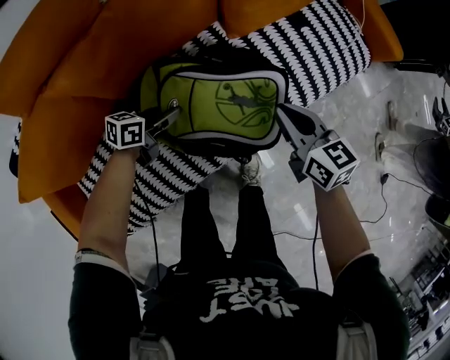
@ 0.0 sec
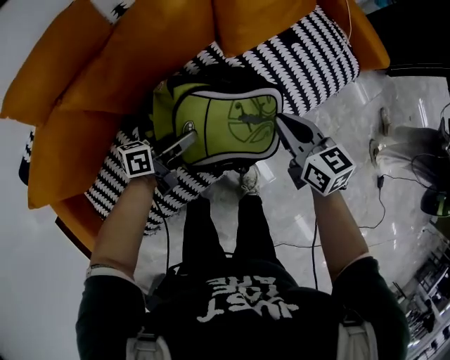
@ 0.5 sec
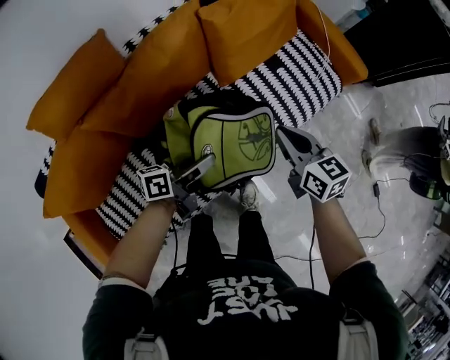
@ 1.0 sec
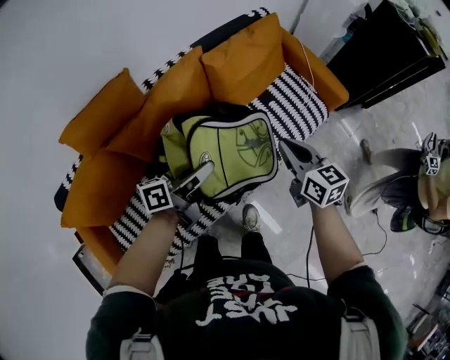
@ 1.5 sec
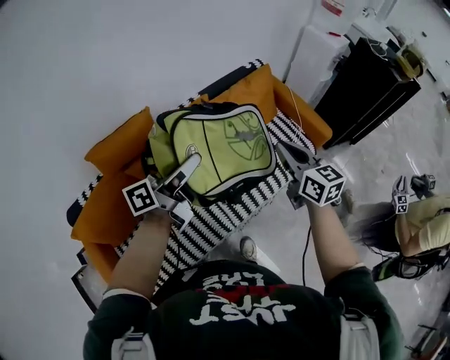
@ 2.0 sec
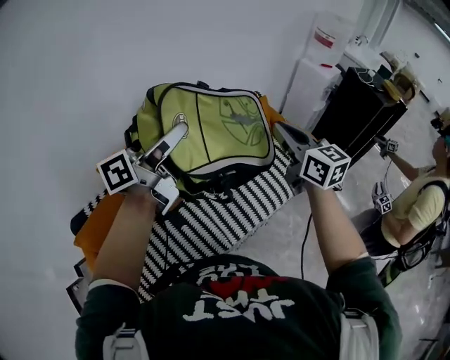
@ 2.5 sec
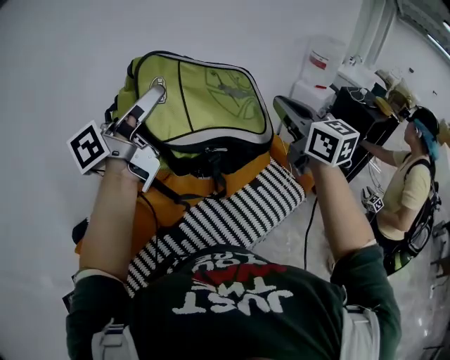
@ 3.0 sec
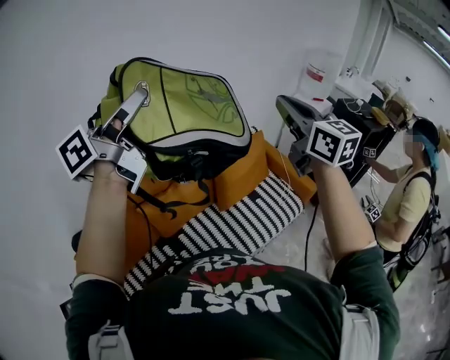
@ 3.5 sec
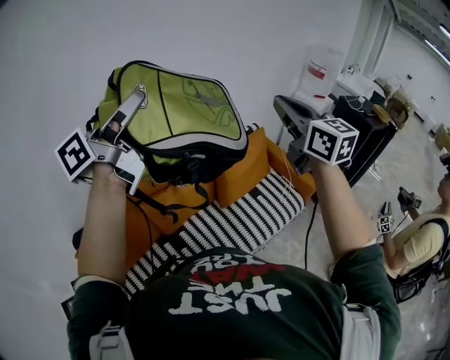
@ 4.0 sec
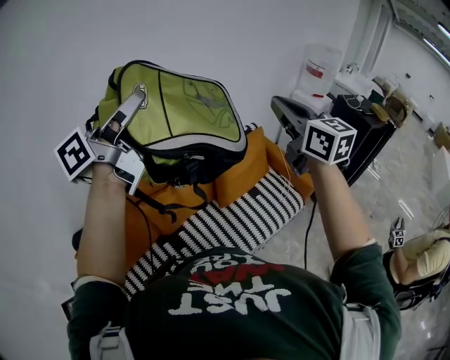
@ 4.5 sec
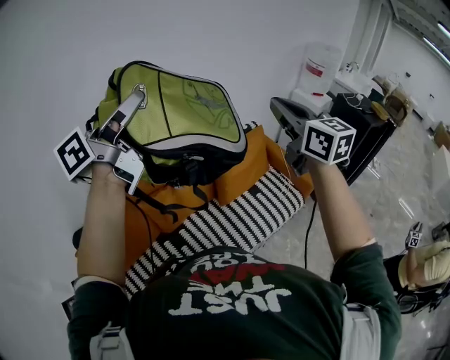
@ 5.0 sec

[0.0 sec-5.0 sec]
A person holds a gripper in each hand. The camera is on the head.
0.0 sec to 2.5 sec: The right gripper goes up and down, some 35 cm each way, reversing 2 times, and turns by approximately 20 degrees. The left gripper goes approximately 50 cm upward, and angles its fingers upward, by roughly 40 degrees.
2.5 sec to 5.0 sec: Both grippers travel together upward, about 15 cm.

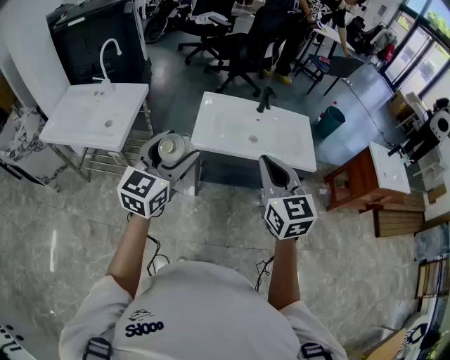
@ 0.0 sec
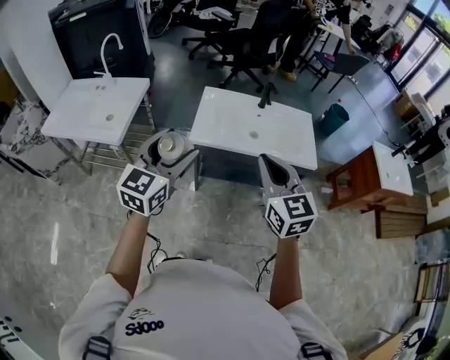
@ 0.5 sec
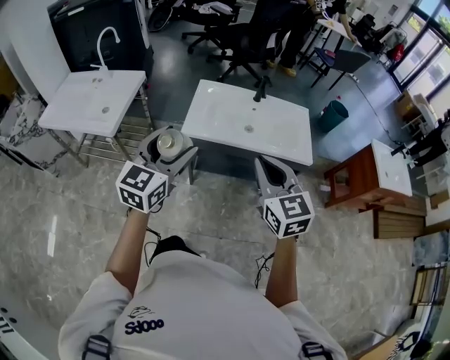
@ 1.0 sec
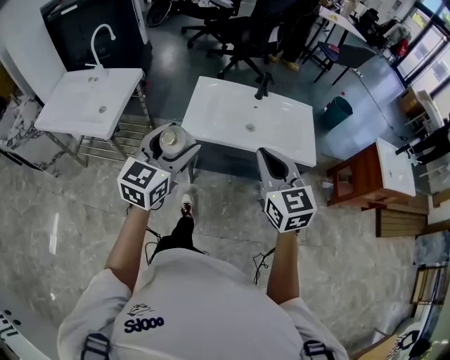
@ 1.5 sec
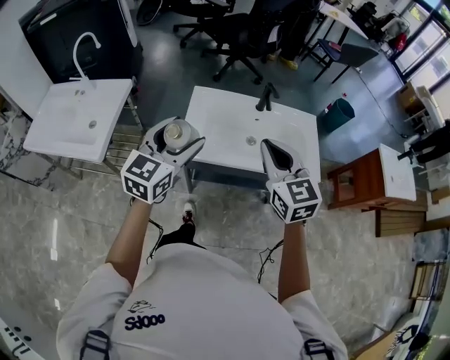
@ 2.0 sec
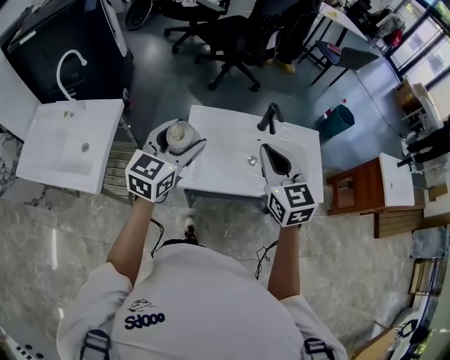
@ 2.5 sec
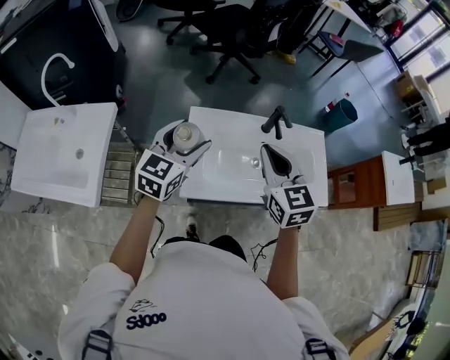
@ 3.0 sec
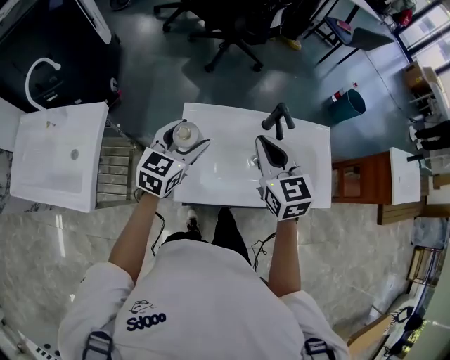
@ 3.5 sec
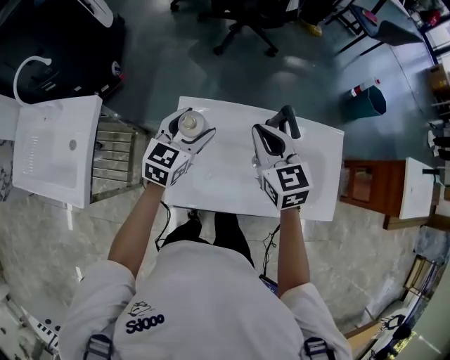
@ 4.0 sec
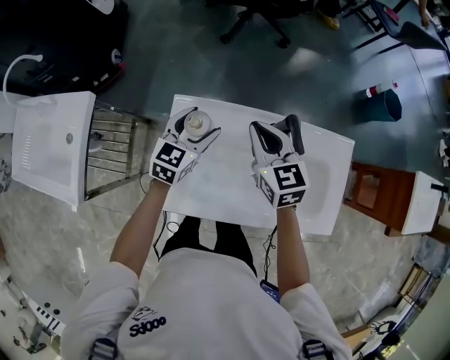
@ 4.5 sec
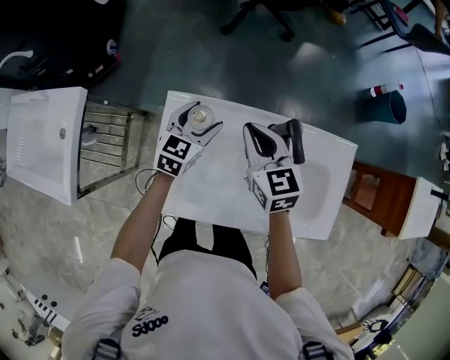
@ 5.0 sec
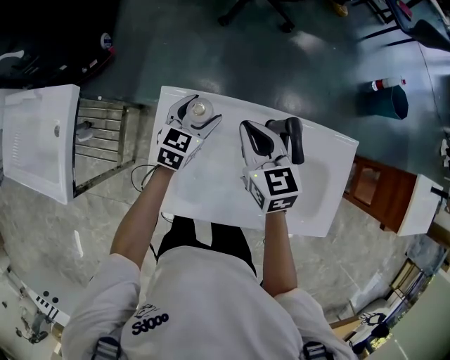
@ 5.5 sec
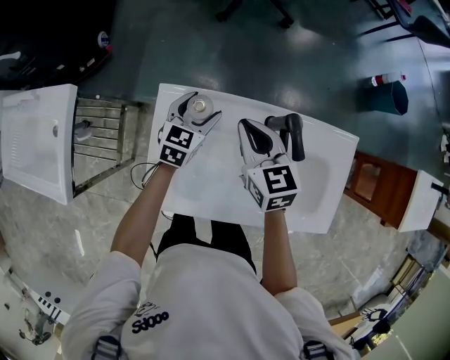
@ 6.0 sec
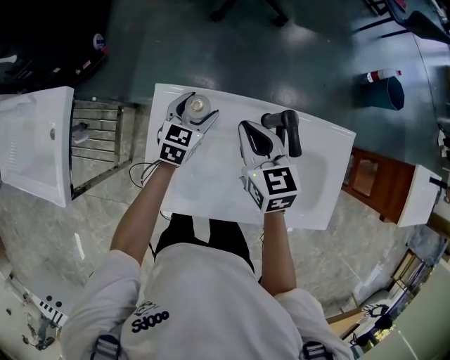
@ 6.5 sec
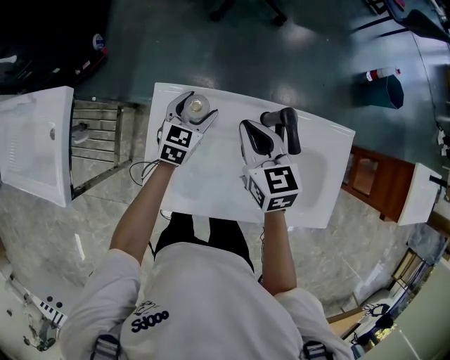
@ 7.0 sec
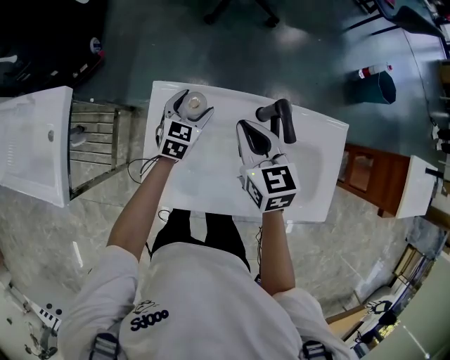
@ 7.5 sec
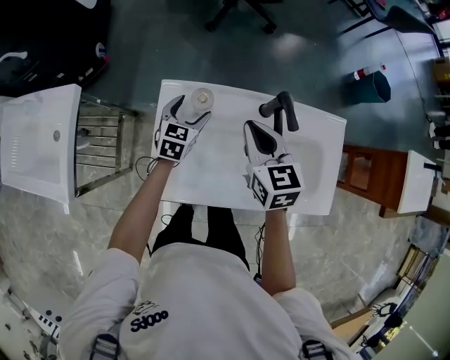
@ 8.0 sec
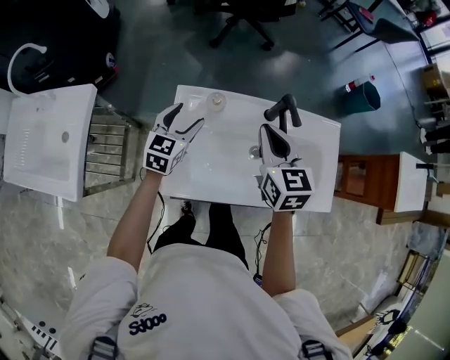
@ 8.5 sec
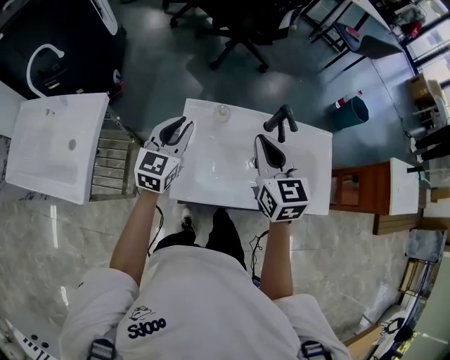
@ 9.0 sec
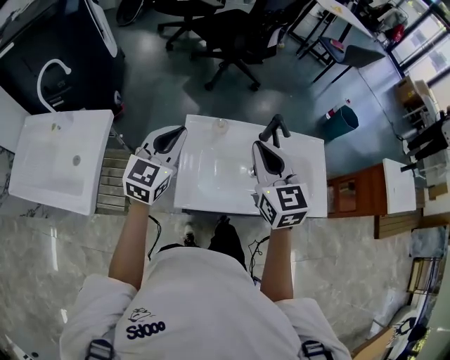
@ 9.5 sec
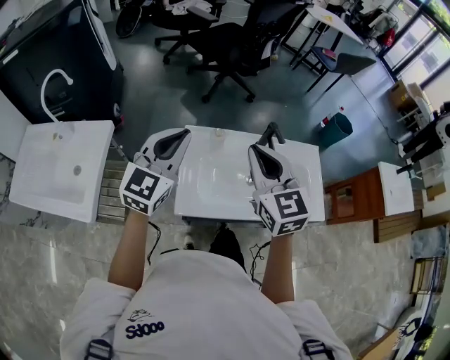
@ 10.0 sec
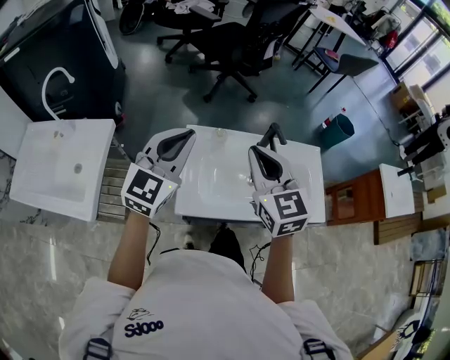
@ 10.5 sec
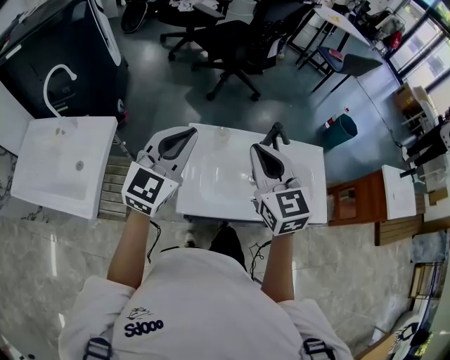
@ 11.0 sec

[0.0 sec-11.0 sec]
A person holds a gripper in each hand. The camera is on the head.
0.0 sec to 2.0 sec: Both grippers travel together forward, roughly 15 cm.
2.0 sec to 3.5 sec: The left gripper is displaced forward and downward by about 25 cm. The right gripper heads forward, covering roughly 20 cm.
3.5 sec to 5.5 sec: The left gripper shifts roughly 25 cm downward, forward and to the right; the right gripper moves downward and forward, about 20 cm.
5.5 sec to 7.5 sec: The grippers stay close to where they were, moving slightly.
7.5 sec to 9.0 sec: The left gripper goes roughly 25 cm upward, to the left and backward, rotates about 20 degrees, and closes up. The right gripper moves upward and backward, some 15 cm.
9.0 sec to 11.0 sec: The right gripper is displaced upward by roughly 10 cm. The left gripper goes roughly 15 cm upward.

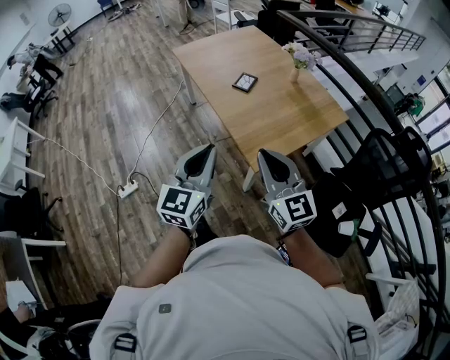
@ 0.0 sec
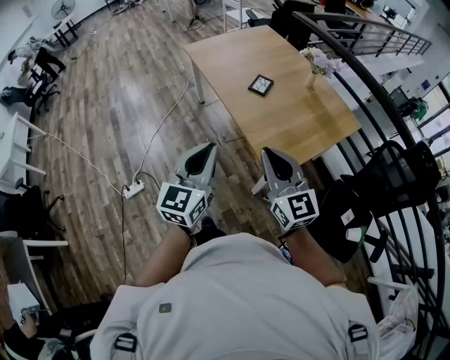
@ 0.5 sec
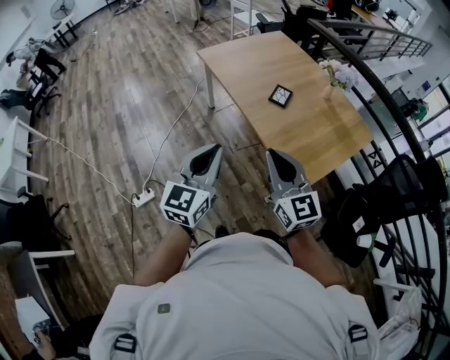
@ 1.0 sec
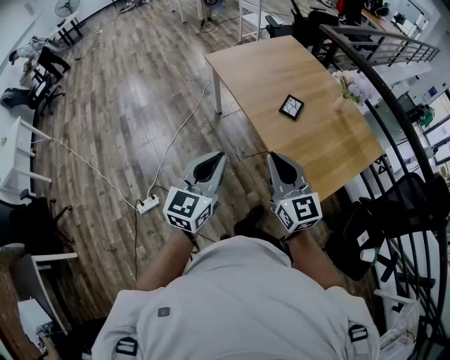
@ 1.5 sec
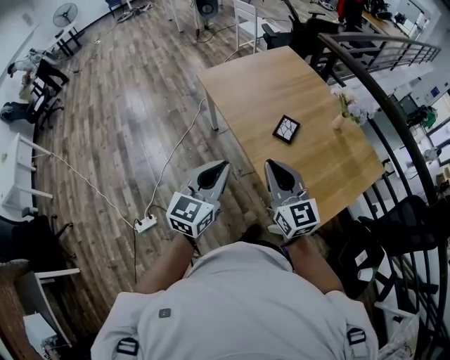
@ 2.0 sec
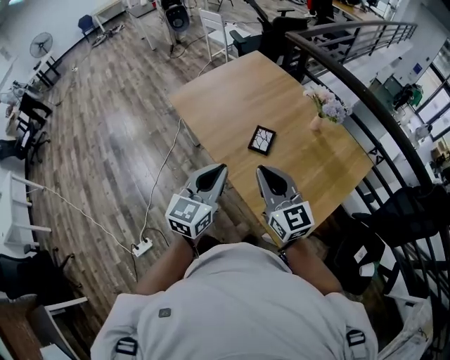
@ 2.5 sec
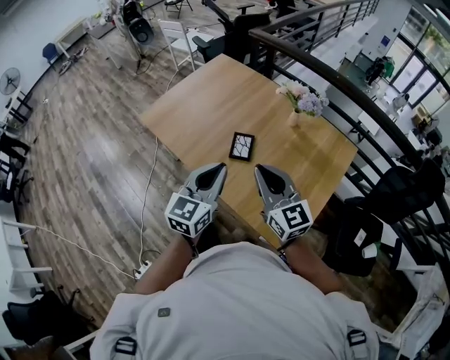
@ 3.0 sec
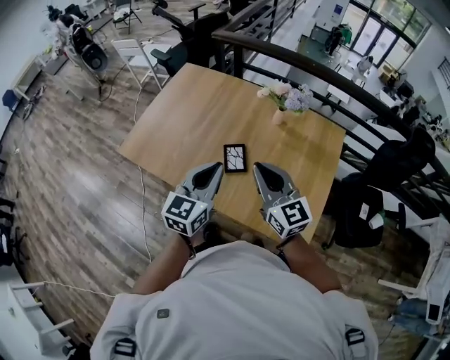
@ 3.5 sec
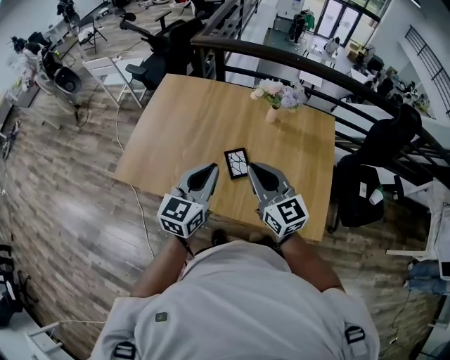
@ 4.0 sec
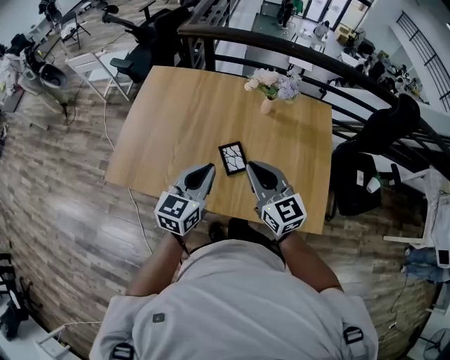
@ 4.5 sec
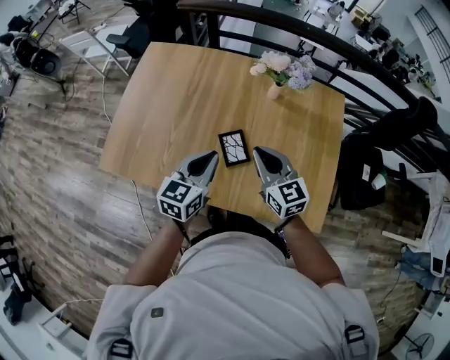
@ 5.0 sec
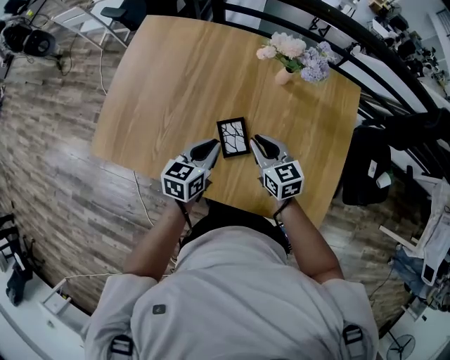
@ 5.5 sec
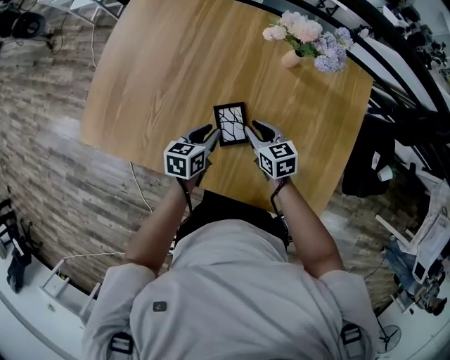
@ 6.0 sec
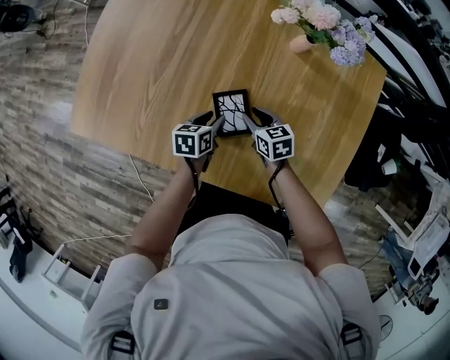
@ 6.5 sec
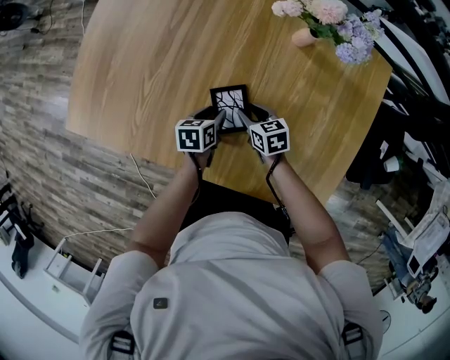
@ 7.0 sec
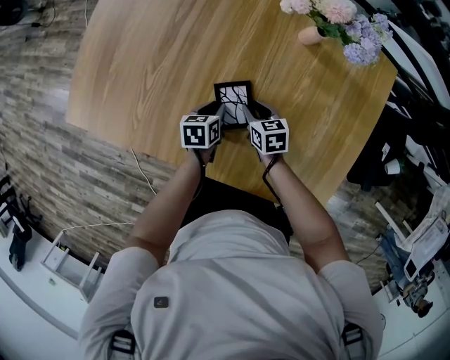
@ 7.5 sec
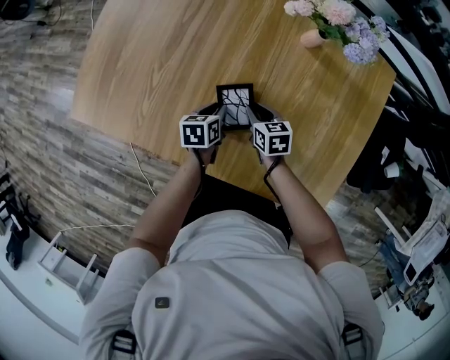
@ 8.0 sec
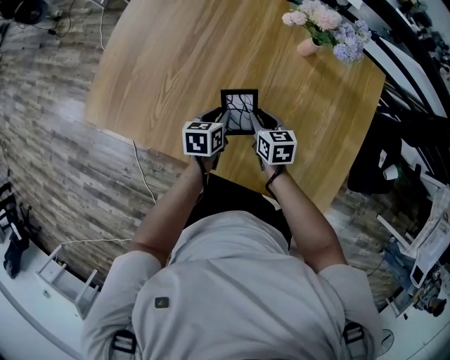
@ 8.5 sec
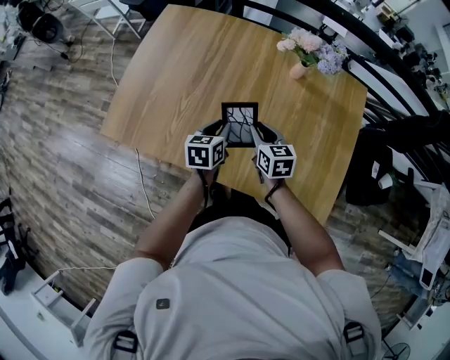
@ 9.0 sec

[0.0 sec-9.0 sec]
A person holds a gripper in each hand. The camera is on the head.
0.0 sec to 2.0 sec: The grippers both shift forward and to the left by some 40 cm.
2.0 sec to 4.5 sec: The left gripper shifts by approximately 35 cm, and turns by approximately 50 degrees; the right gripper shifts by approximately 30 cm, and turns by roughly 40 degrees.
4.5 sec to 7.0 sec: The grippers both shift downward by approximately 40 cm. The right gripper points its fingers about 40 degrees further downward, and opens, while the left gripper tips its fingers downward by some 40 degrees, and opens its fingers.
7.0 sec to 9.0 sec: The two grippers go about 20 cm upward. The left gripper swivels roughly 20 degrees, and closes up; the right gripper rotates roughly 20 degrees.

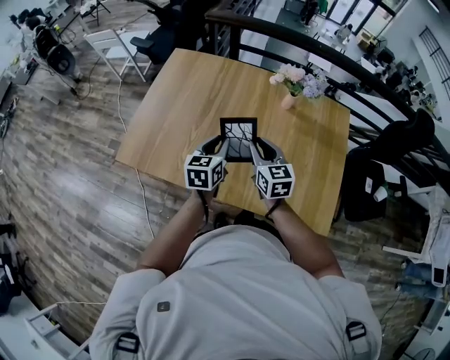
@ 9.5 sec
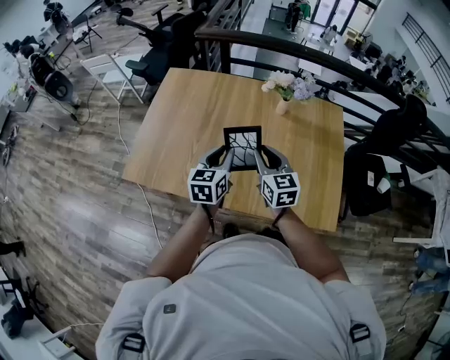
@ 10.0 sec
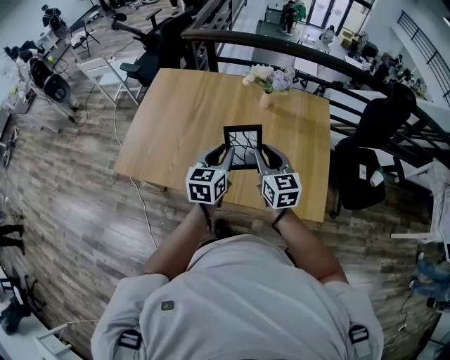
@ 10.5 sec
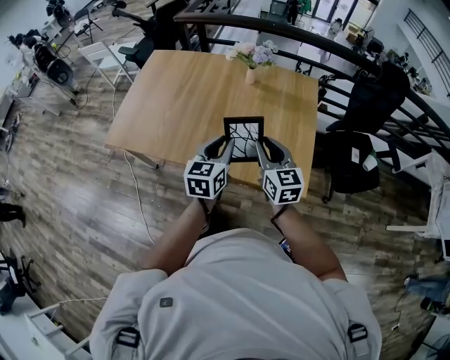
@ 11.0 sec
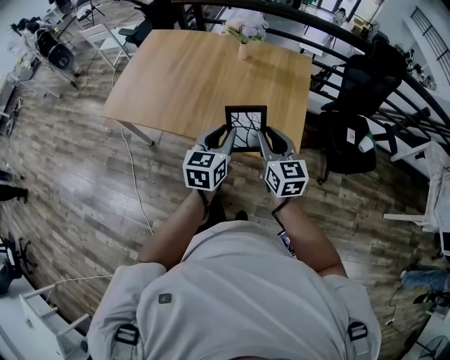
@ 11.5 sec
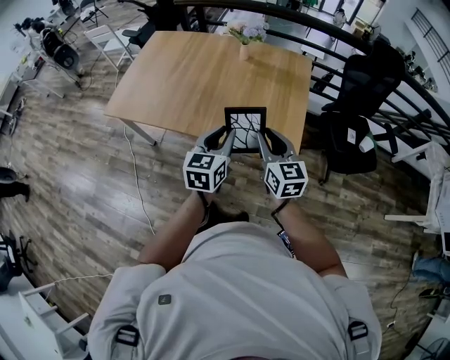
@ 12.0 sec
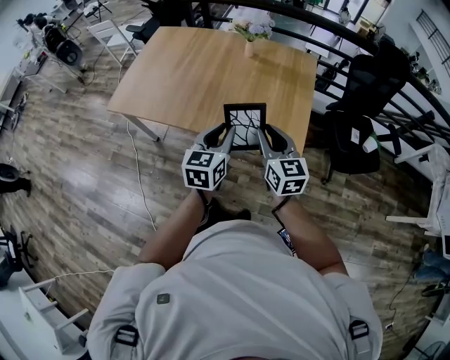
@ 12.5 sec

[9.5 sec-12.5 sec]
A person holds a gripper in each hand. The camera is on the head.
9.5 sec to 11.0 sec: Both grippers travel together backward and to the right, approximately 30 cm.
11.0 sec to 12.5 sec: The two grippers go about 15 cm backward and to the right.
